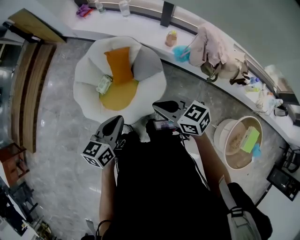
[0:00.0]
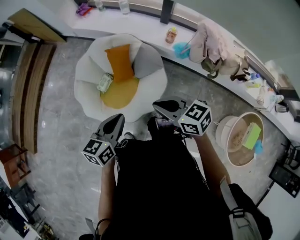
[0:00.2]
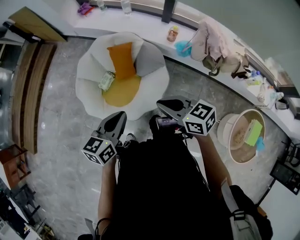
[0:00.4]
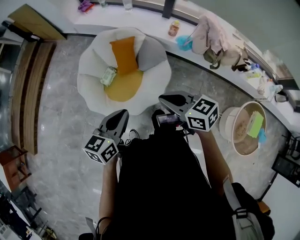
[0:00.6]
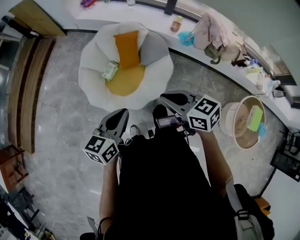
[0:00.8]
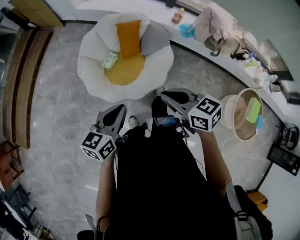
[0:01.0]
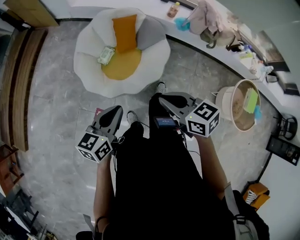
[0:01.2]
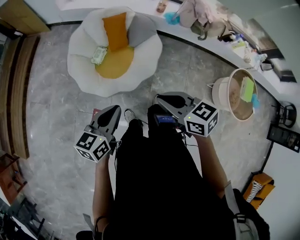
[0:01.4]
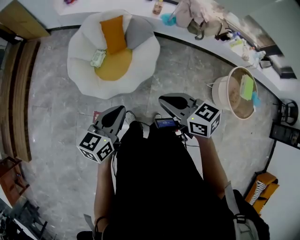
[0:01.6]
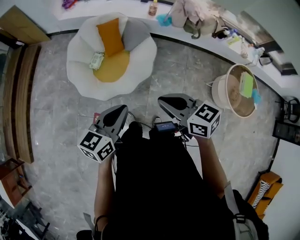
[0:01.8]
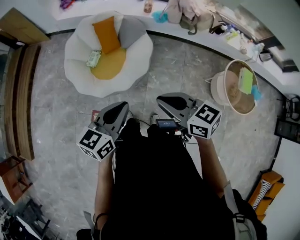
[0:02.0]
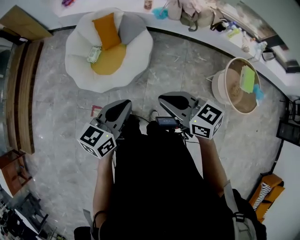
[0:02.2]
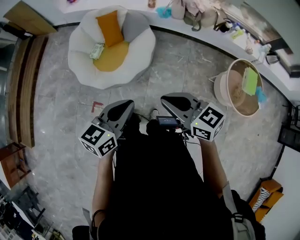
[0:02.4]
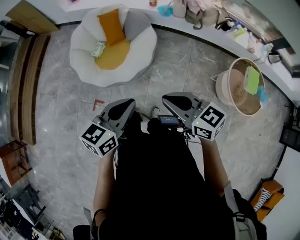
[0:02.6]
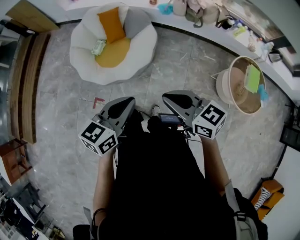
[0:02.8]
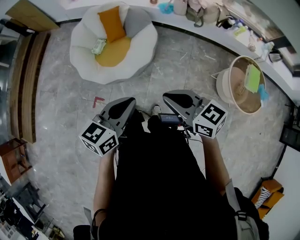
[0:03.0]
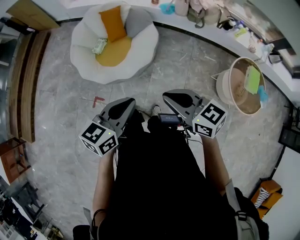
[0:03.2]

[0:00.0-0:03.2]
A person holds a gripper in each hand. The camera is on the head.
0:00.0 to 0:01.6: Both grippers move backward and to the left, about 35 cm.
0:01.6 to 0:03.2: The right gripper is displaced backward and to the right by approximately 20 cm. The left gripper heads to the right and backward, covering roughly 20 cm.

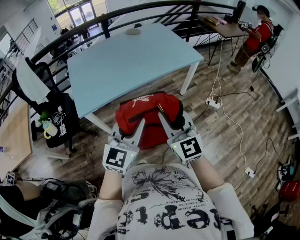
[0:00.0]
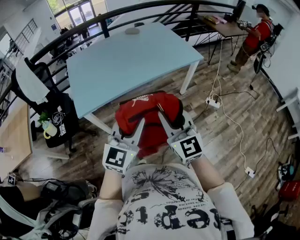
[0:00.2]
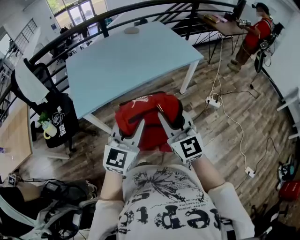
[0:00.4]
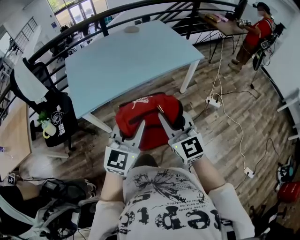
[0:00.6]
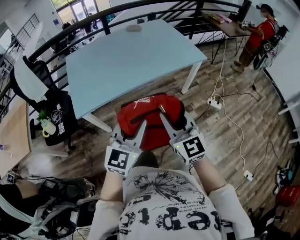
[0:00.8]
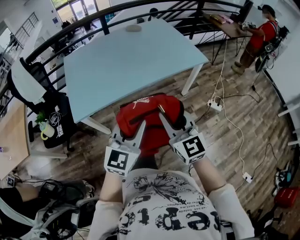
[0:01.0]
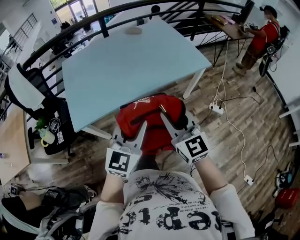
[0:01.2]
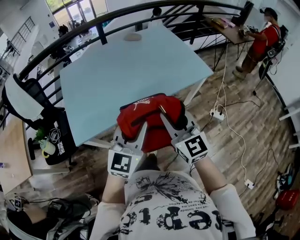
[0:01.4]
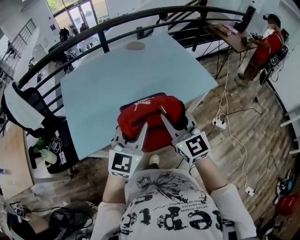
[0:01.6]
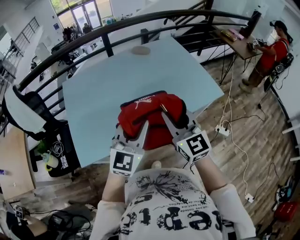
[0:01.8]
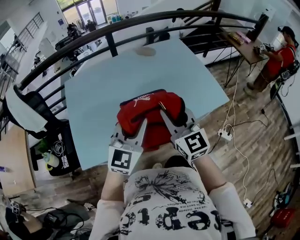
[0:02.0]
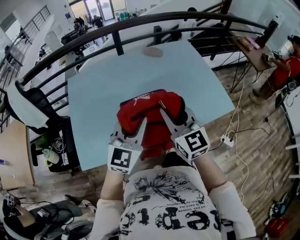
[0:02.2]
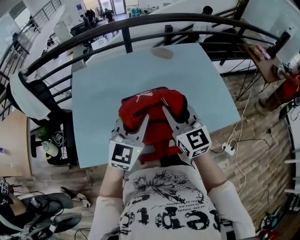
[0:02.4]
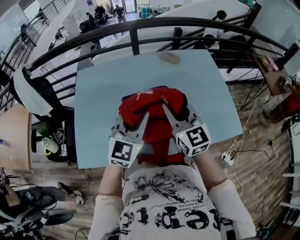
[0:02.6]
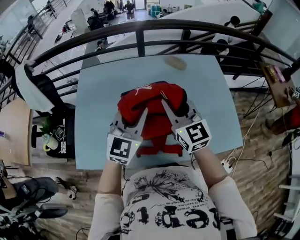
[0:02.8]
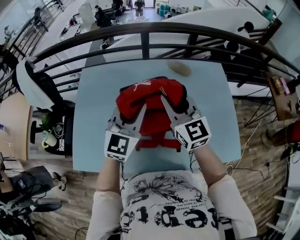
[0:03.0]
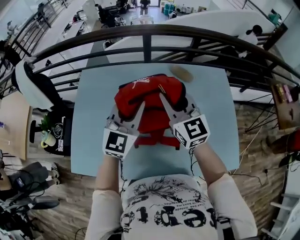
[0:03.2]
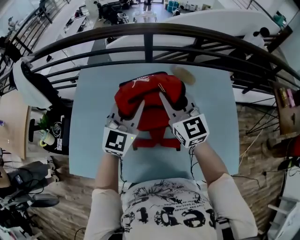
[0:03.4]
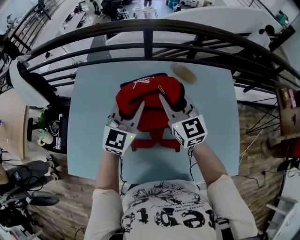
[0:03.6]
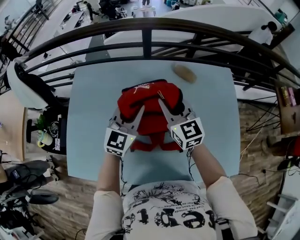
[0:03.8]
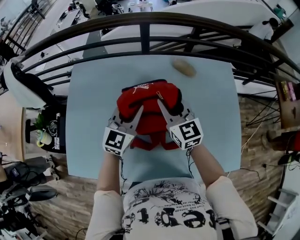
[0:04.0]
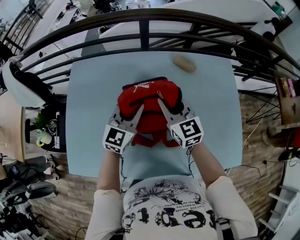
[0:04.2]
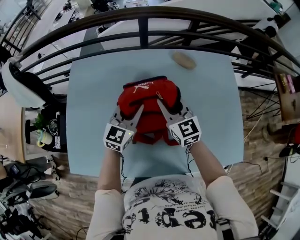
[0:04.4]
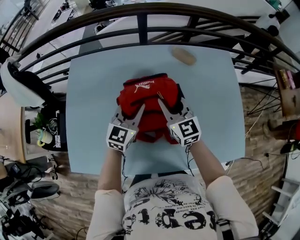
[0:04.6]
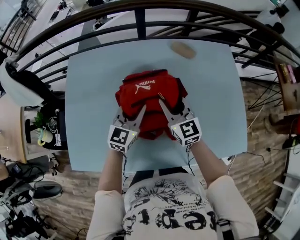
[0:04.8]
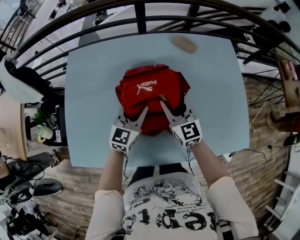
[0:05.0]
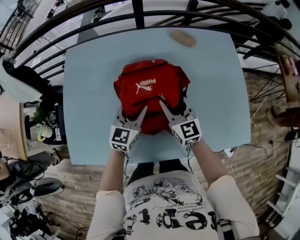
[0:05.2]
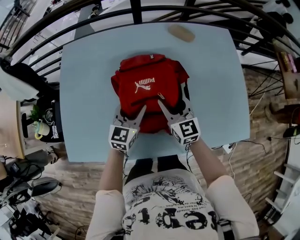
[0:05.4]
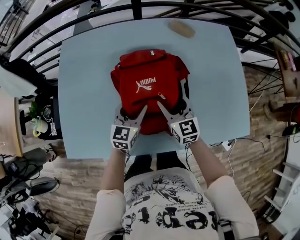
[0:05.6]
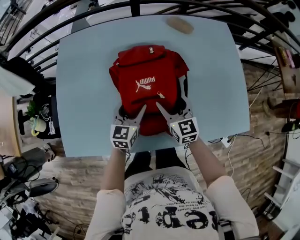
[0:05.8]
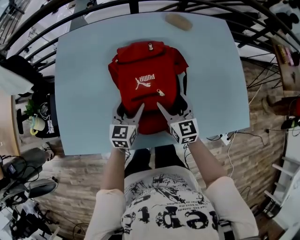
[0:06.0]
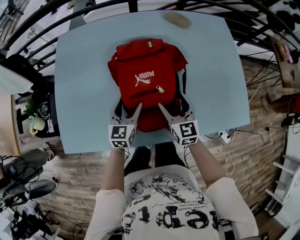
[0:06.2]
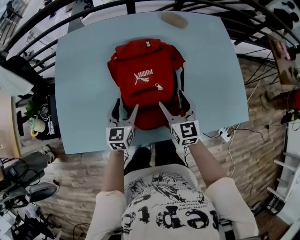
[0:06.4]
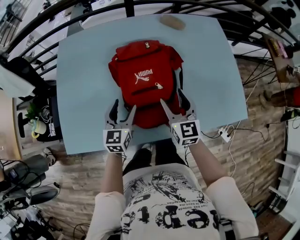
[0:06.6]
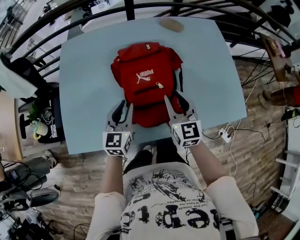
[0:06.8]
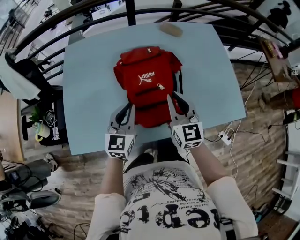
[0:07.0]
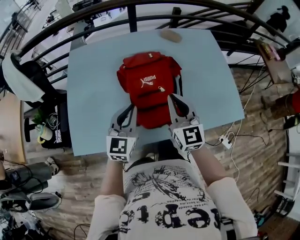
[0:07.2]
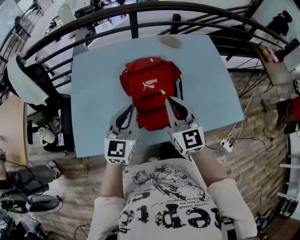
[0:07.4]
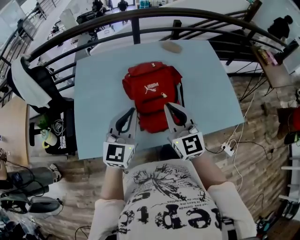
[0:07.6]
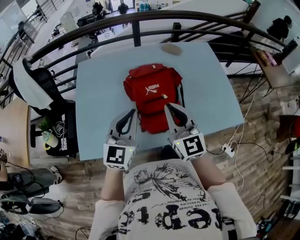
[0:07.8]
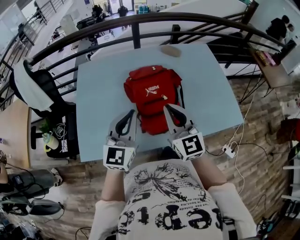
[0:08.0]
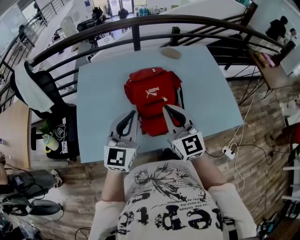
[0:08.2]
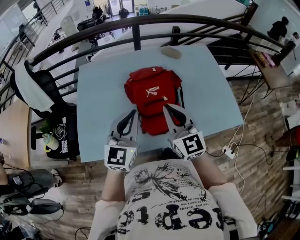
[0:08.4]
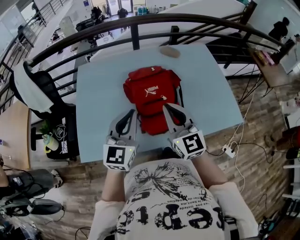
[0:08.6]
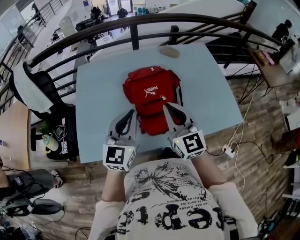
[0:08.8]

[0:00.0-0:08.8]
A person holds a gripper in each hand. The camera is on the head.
0:00.0 to 0:01.4: Both grippers move forward, approximately 25 cm.
0:01.4 to 0:03.0: The two grippers travel together, forward, some 50 cm. The right gripper rotates some 20 degrees. The left gripper rotates roughly 20 degrees.
0:03.0 to 0:04.4: The grippers both shift downward and forward by some 20 cm.
0:04.4 to 0:05.8: The left gripper travels downward and backward by some 20 cm, and opens. The right gripper is displaced backward and downward by approximately 20 cm, and opens up.
0:05.8 to 0:07.4: The two grippers go approximately 25 cm upward and backward. The right gripper changes its angle by roughly 20 degrees, and closes; the left gripper rotates some 20 degrees, and closes.
0:07.4 to 0:08.8: The left gripper moves upward, roughly 5 cm.

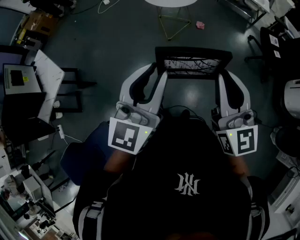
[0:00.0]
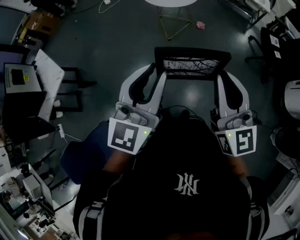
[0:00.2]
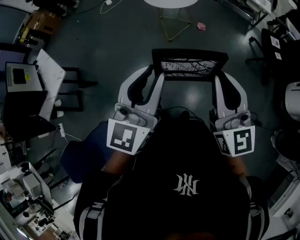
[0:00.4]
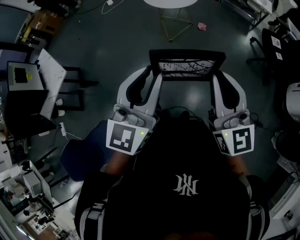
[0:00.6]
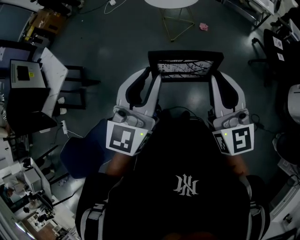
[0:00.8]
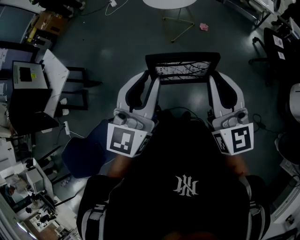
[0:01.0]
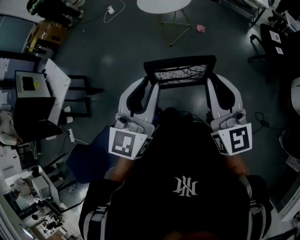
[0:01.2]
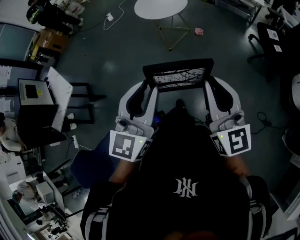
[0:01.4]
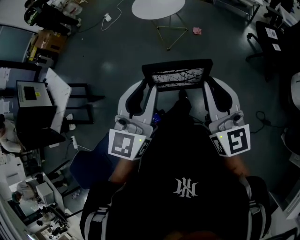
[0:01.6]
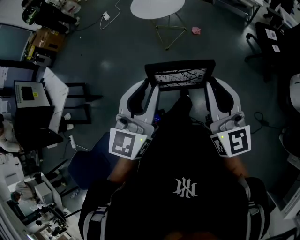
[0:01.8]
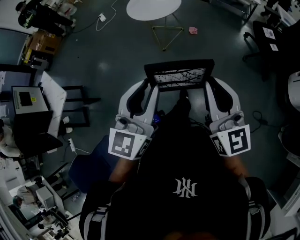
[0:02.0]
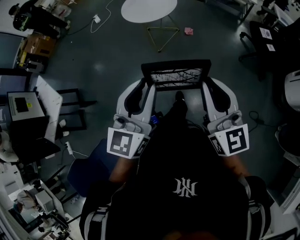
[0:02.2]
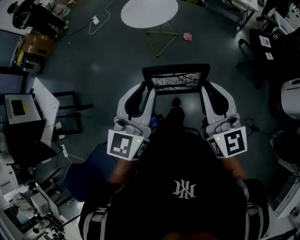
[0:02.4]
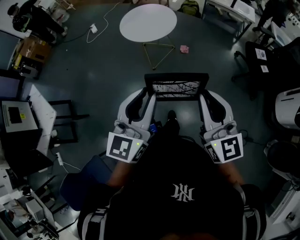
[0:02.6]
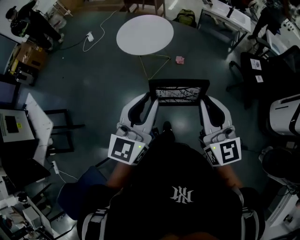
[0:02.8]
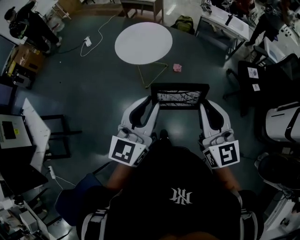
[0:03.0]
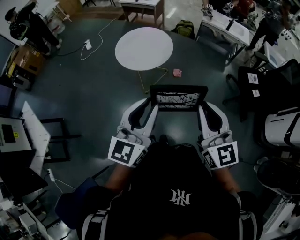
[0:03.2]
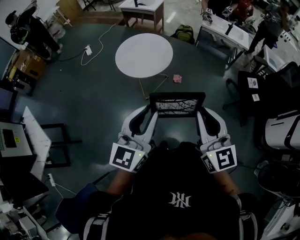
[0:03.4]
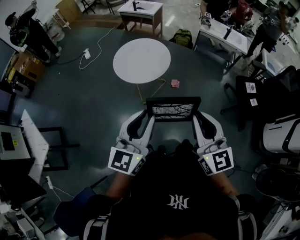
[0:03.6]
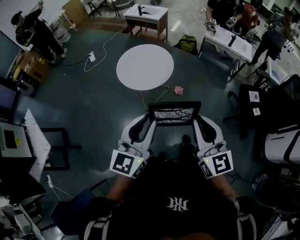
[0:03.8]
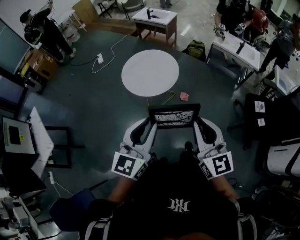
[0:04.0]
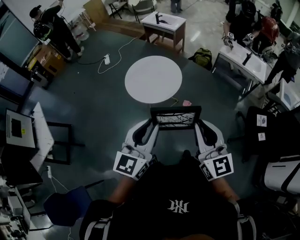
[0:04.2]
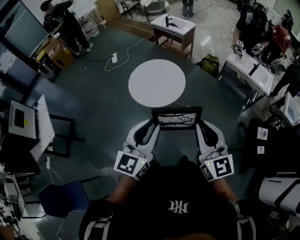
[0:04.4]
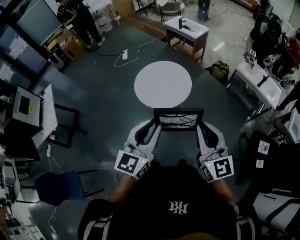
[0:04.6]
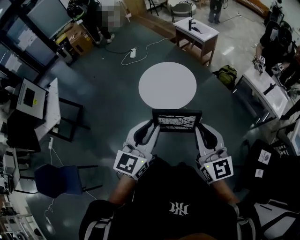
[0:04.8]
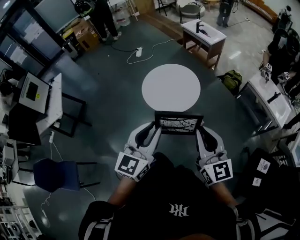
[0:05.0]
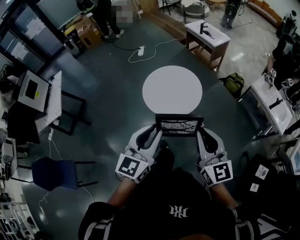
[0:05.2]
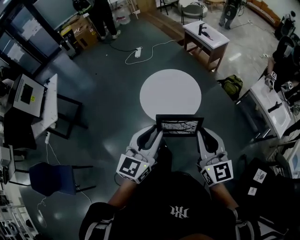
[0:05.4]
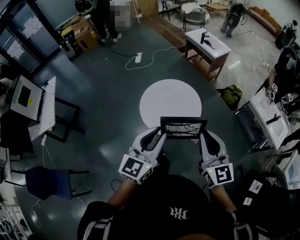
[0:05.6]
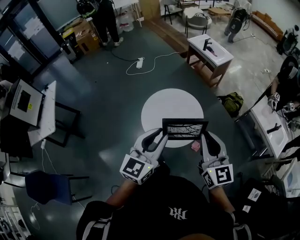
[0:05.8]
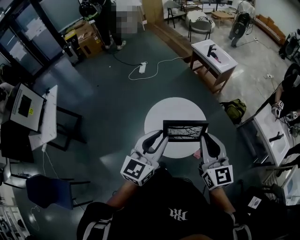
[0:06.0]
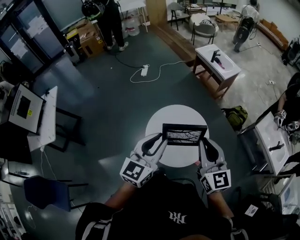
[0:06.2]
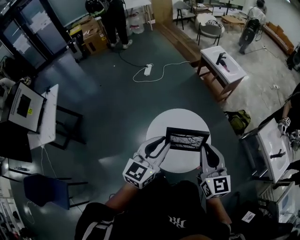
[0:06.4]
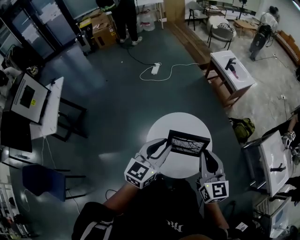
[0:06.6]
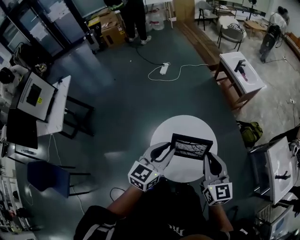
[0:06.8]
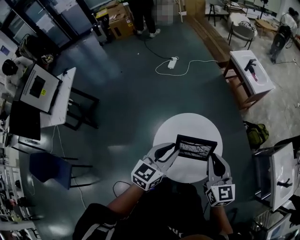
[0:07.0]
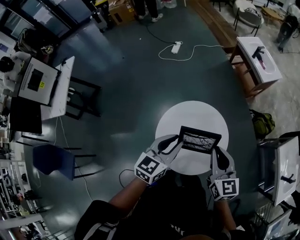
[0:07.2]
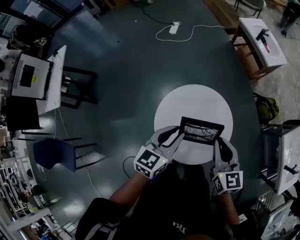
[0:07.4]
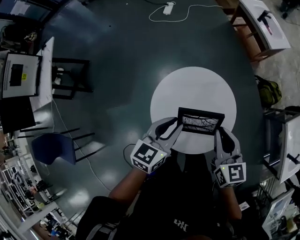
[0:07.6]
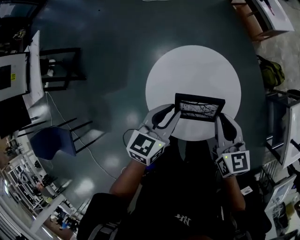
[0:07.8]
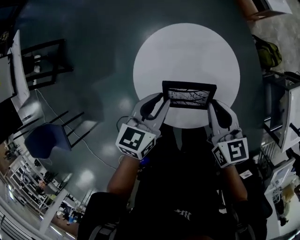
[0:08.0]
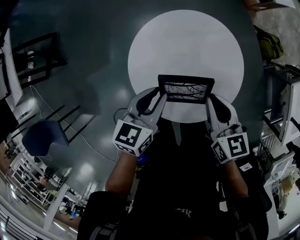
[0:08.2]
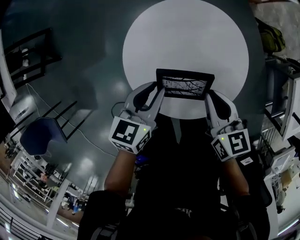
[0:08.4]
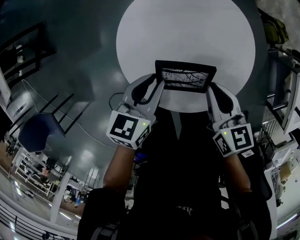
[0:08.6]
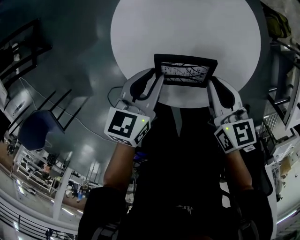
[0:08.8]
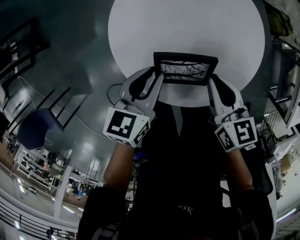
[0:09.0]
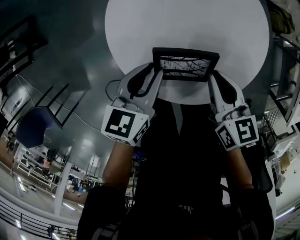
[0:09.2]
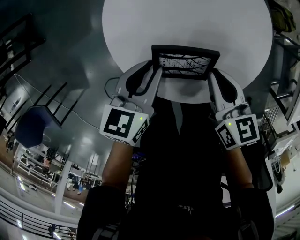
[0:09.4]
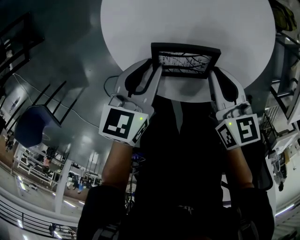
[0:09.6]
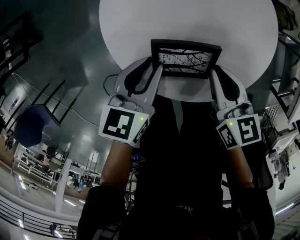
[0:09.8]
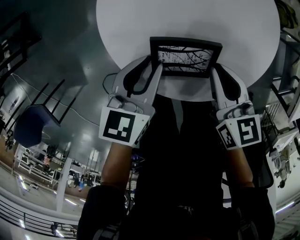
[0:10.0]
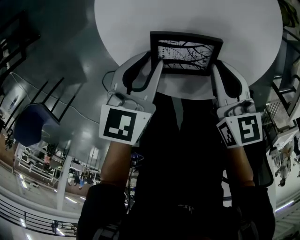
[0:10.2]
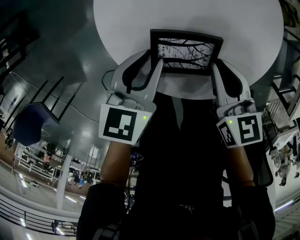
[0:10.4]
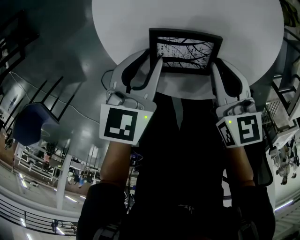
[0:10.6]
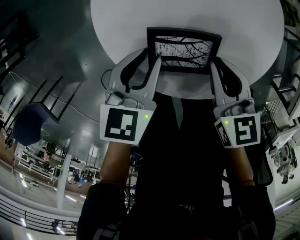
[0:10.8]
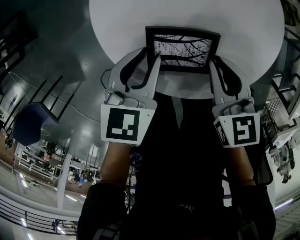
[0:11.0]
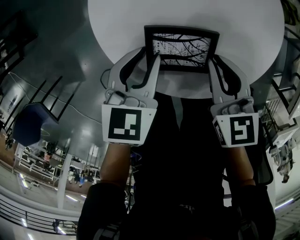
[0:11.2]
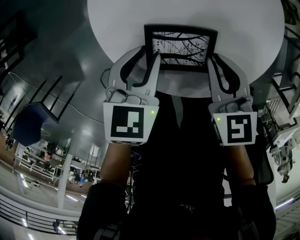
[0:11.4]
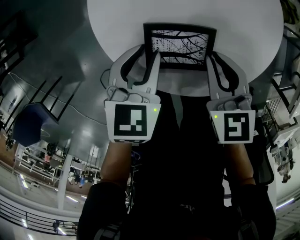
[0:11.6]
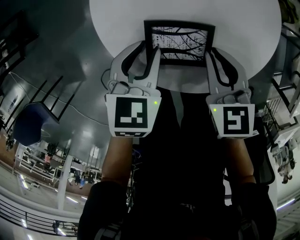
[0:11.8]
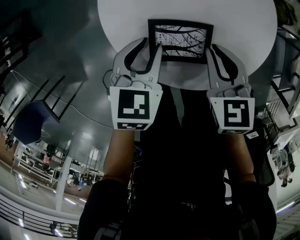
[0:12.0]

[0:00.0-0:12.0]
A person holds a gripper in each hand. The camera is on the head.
0:00.0 to 0:01.6: Both grippers move to the right, roughly 10 cm.
0:01.6 to 0:03.0: Both grippers travel together forward, approximately 30 cm.
0:03.0 to 0:04.4: Both grippers travel together forward and to the right, about 25 cm.
0:04.4 to 0:06.0: The grippers both shift forward by roughly 35 cm.
0:06.0 to 0:07.6: Both grippers travel together downward and forward, about 35 cm. The right gripper swivels some 30 degrees. Meanwhile the left gripper rotates roughly 30 degrees.
0:07.6 to 0:09.0: The two grippers go about 25 cm downward. The right gripper rotates approximately 20 degrees.
0:09.0 to 0:10.4: The right gripper ends up about 5 cm from where it was.
0:10.4 to 0:12.0: There are only small adjustments of the grippers.
